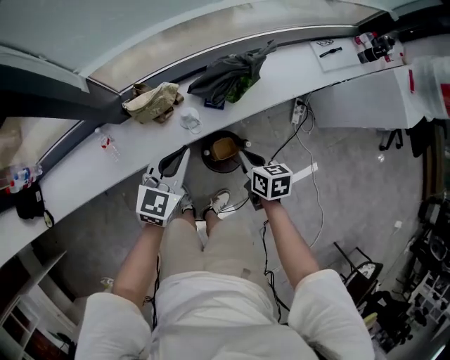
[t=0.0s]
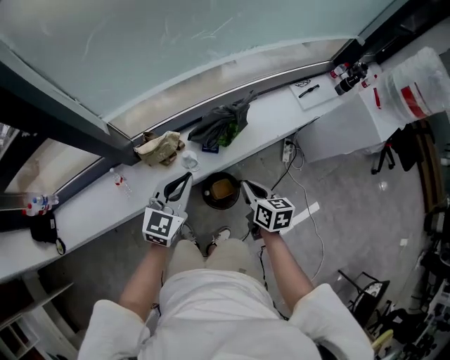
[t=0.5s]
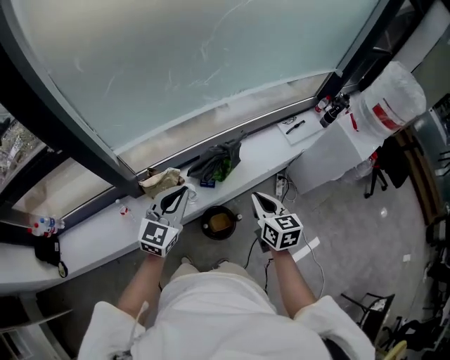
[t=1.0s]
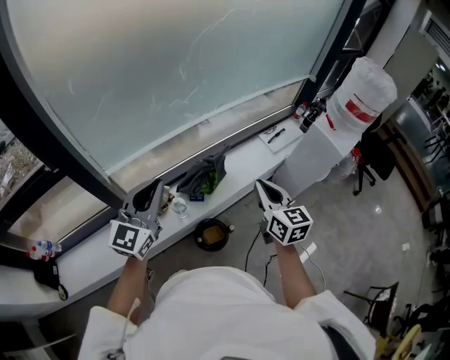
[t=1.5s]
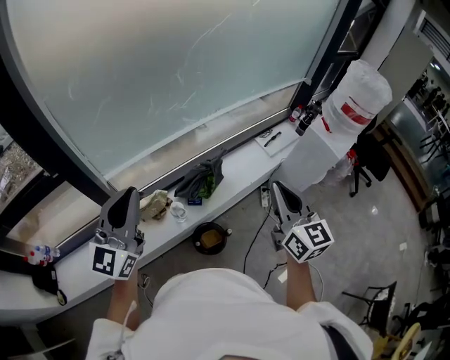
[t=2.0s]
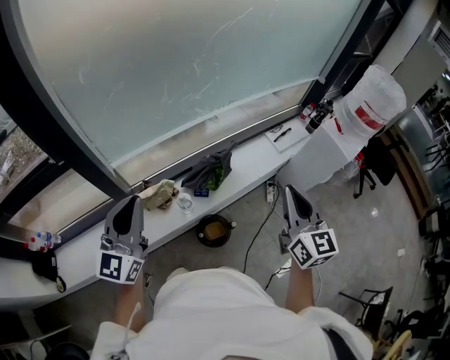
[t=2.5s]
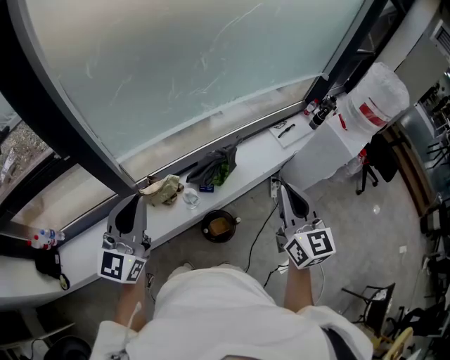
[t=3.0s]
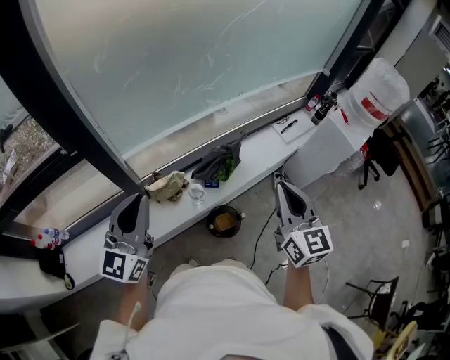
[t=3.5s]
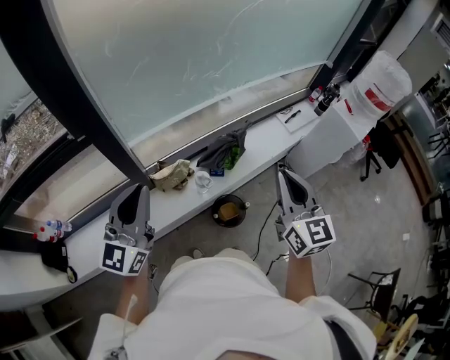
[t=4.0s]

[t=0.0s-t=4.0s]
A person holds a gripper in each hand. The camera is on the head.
t=0.0s to t=2.0s: Both grippers move upward, about 40 cm. The right gripper tilts its fingers roughly 50 degrees upward; the left gripper tips its fingers upward by roughly 40 degrees.
t=2.0s to t=4.0s: The two grippers go some 15 cm to the left and backward.

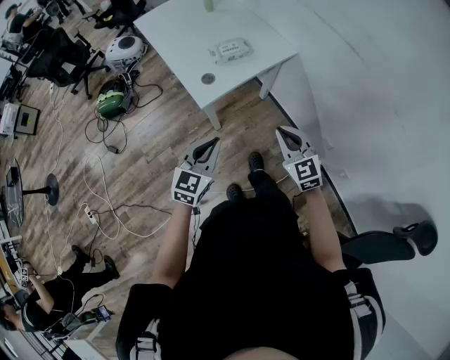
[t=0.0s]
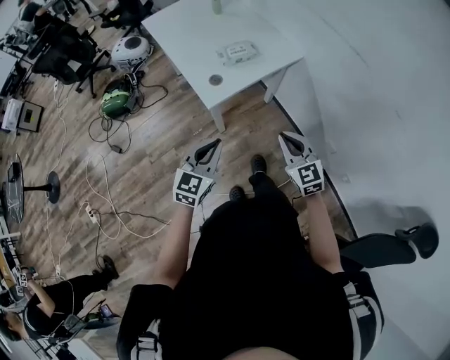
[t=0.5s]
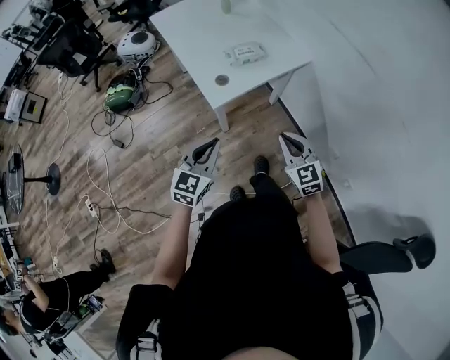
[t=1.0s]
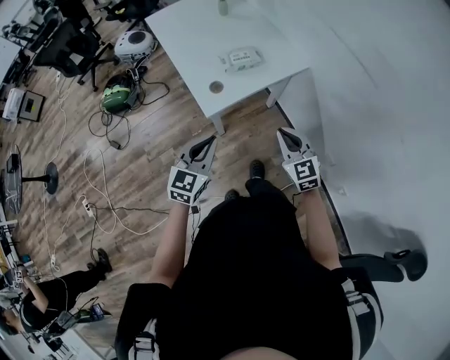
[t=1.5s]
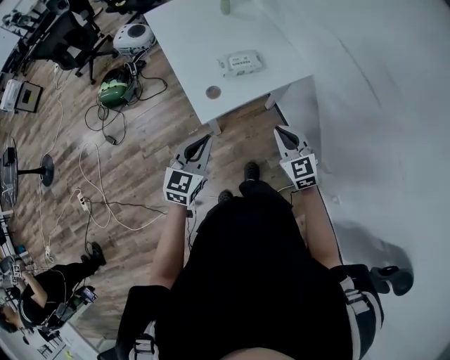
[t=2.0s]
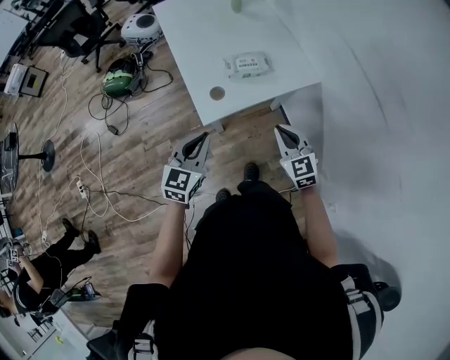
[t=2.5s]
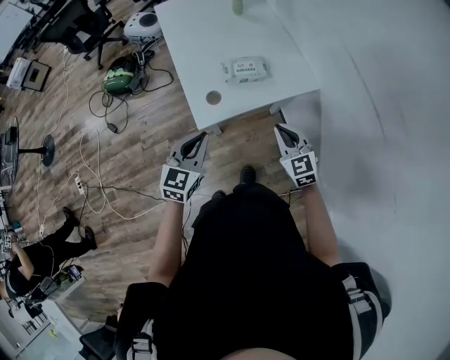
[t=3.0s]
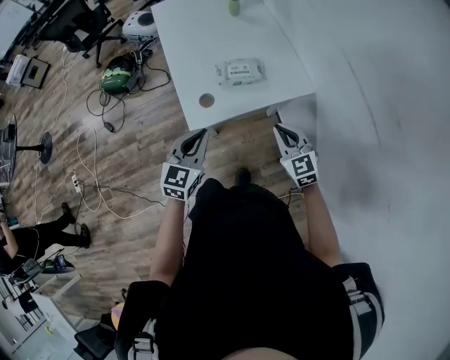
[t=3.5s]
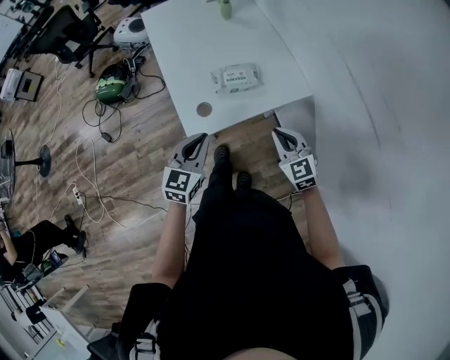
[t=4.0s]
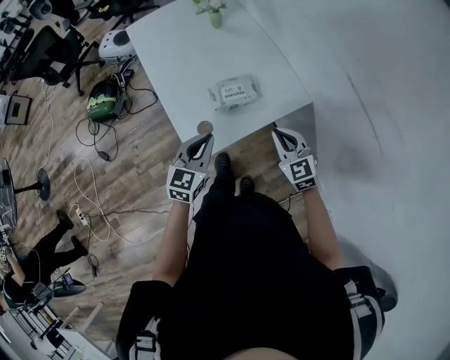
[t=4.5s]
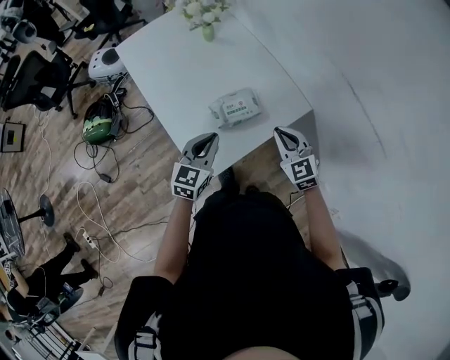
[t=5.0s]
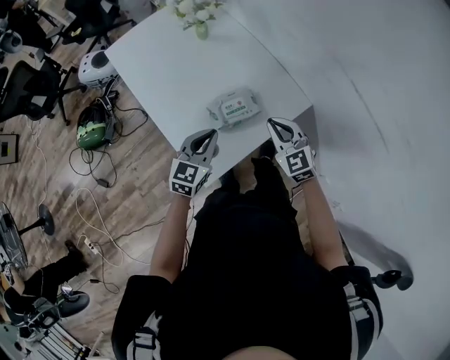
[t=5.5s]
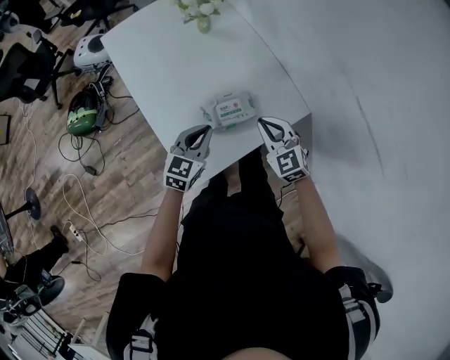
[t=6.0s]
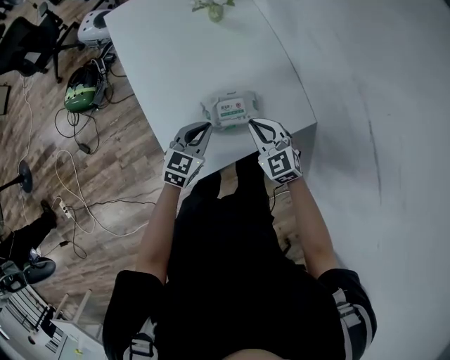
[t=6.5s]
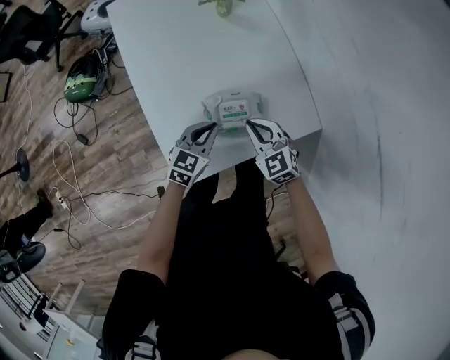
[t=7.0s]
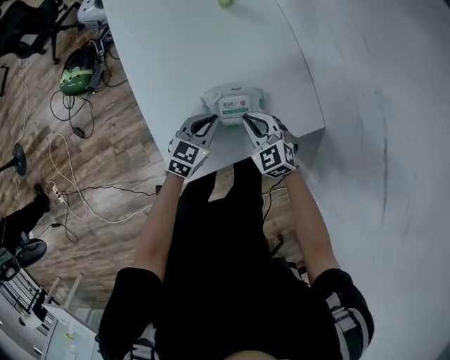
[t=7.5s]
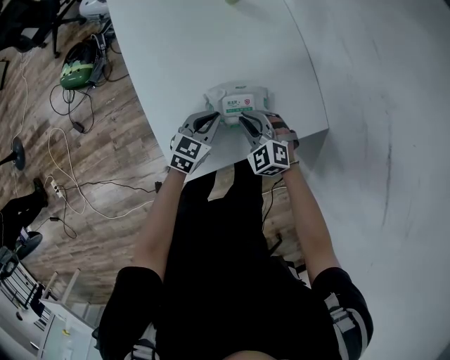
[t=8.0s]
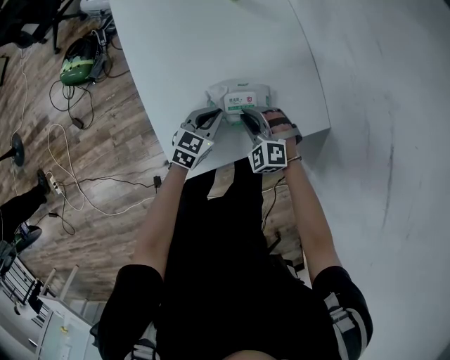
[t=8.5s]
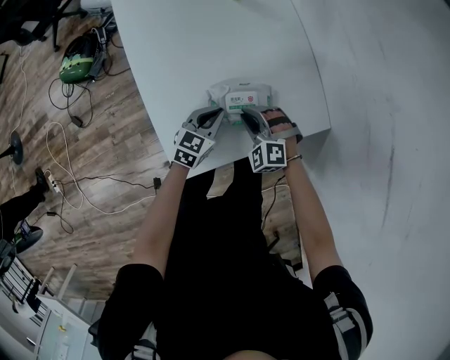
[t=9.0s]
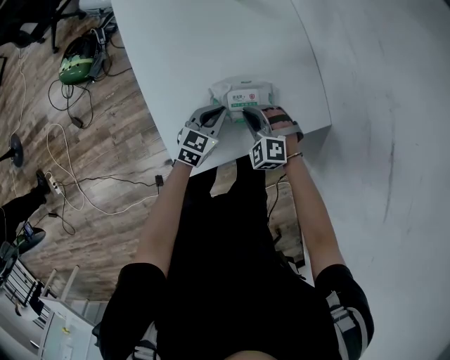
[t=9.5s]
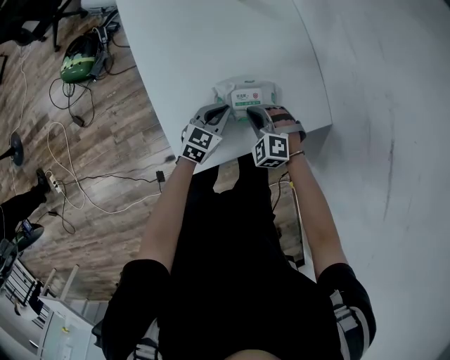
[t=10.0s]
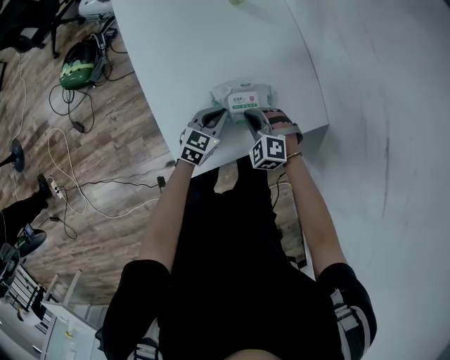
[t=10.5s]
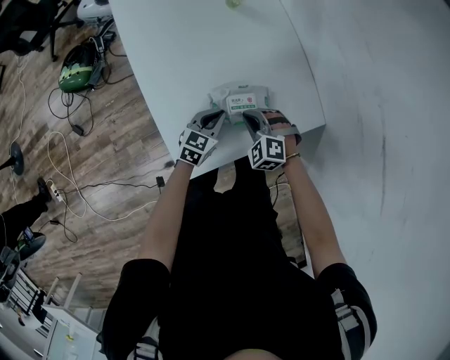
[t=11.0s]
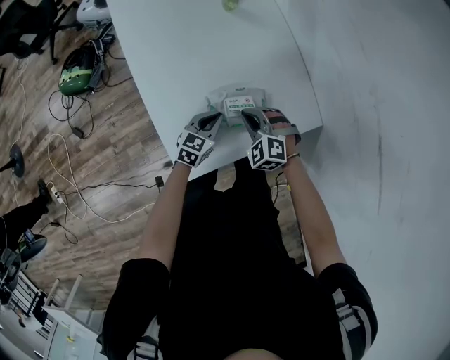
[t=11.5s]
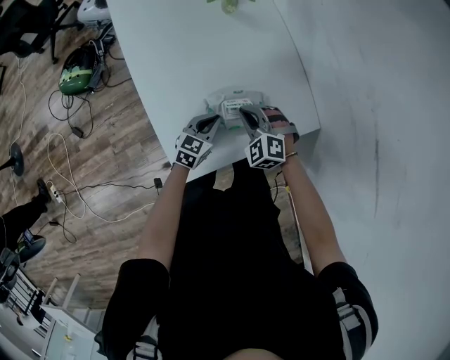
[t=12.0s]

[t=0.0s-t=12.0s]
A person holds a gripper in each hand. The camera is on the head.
t=0.0s to t=2.0s: Both grippers travel together forward, some 15 cm.
t=2.0s to t=4.0s: The grippers both shift forward and to the right by about 15 cm.
t=4.0s to t=6.0s: The right gripper is displaced forward and to the left by approximately 25 cm. The left gripper goes some 25 cm forward.
t=6.0s to t=8.0s: The two grippers go approximately 15 cm downward. The right gripper rotates roughly 30 degrees.
t=8.0s to t=10.0s: There are only small adjustments of the grippers.
t=10.0s to t=12.0s: The right gripper heads upward, covering some 5 cm.

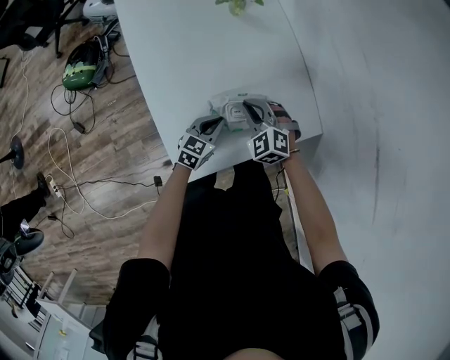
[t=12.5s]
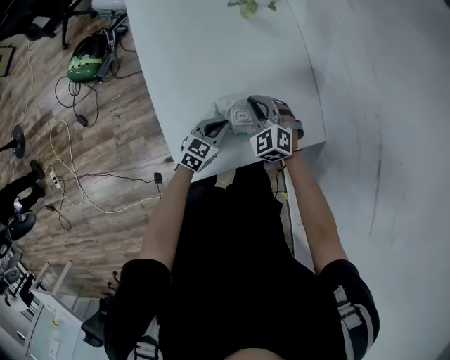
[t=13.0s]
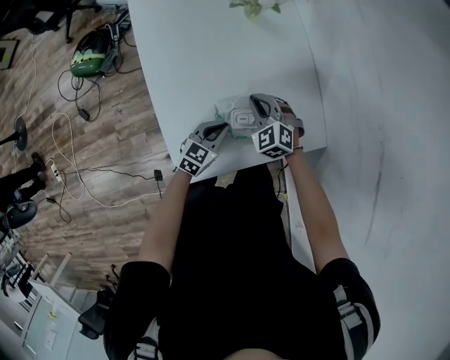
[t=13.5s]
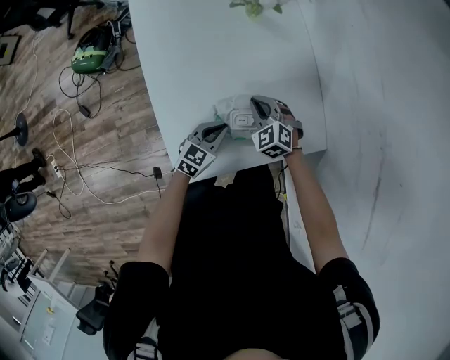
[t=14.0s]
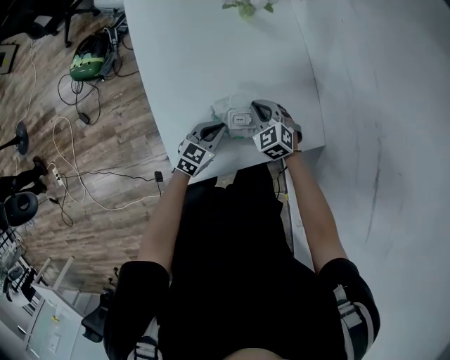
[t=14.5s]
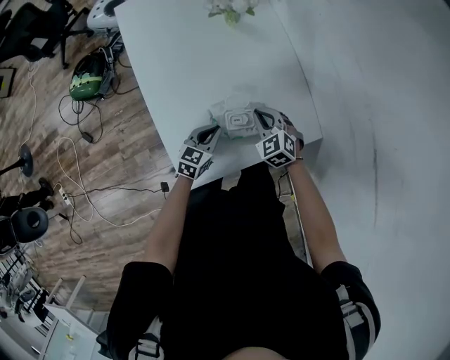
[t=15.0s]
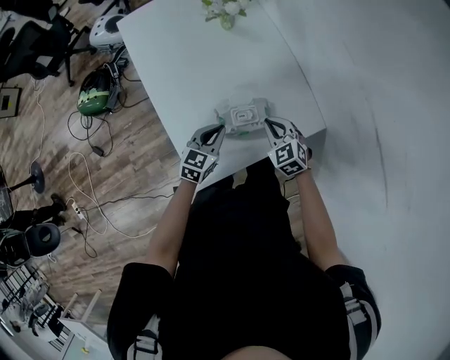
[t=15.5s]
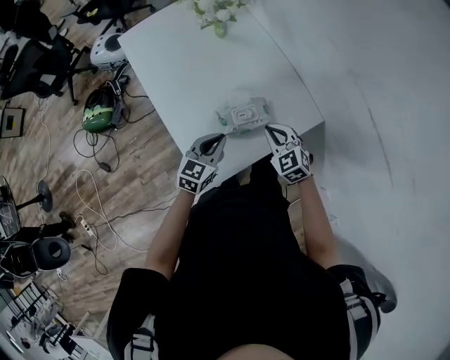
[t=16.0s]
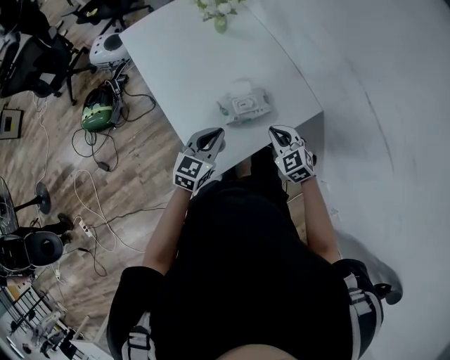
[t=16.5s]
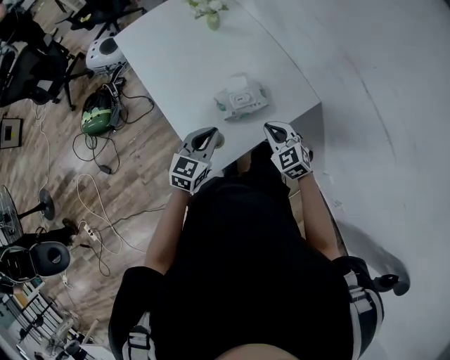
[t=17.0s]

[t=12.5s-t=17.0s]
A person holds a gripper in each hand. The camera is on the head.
t=12.5s to t=14.5s: The right gripper moves roughly 5 cm.
t=14.5s to t=17.0s: The right gripper heads backward and upward, covering approximately 25 cm, and turns by about 20 degrees; the left gripper moves upward and backward, roughly 25 cm.

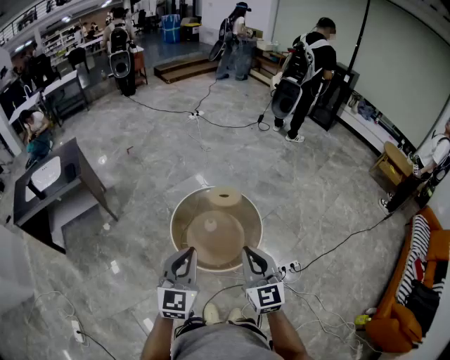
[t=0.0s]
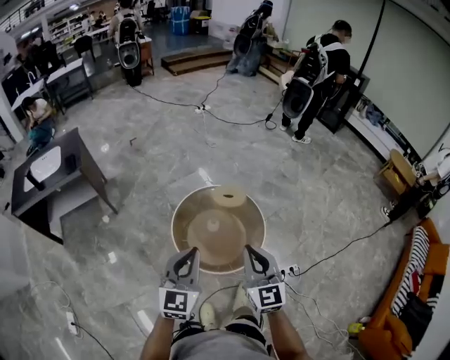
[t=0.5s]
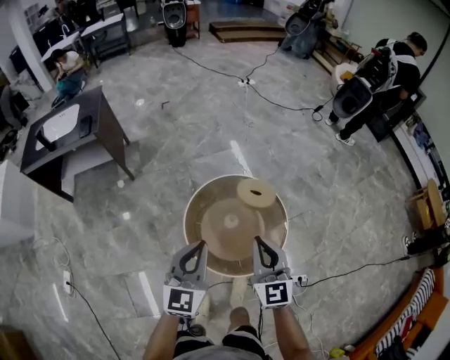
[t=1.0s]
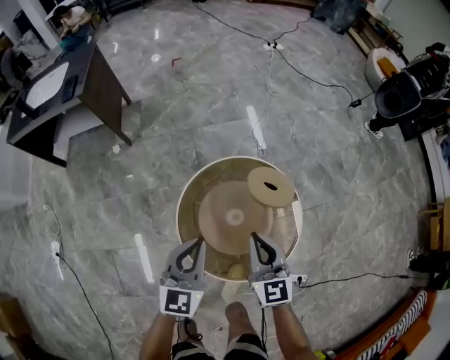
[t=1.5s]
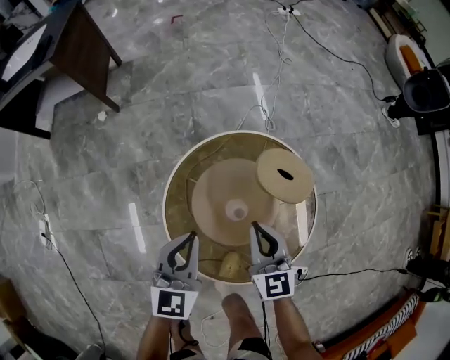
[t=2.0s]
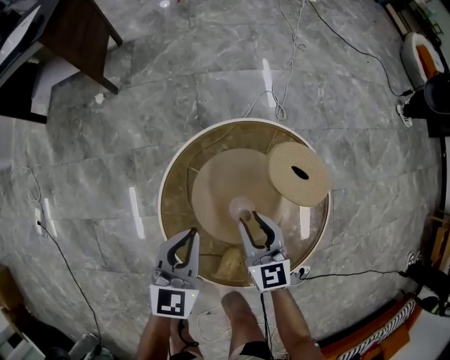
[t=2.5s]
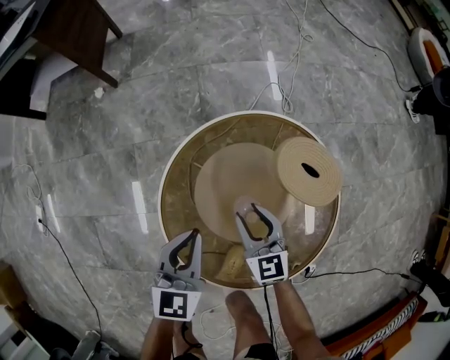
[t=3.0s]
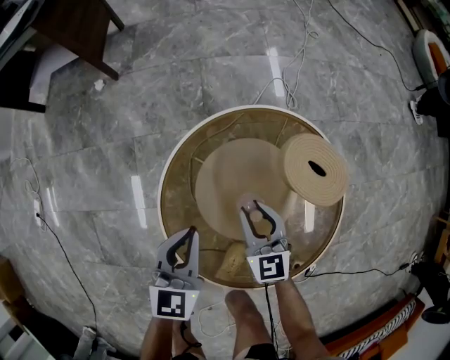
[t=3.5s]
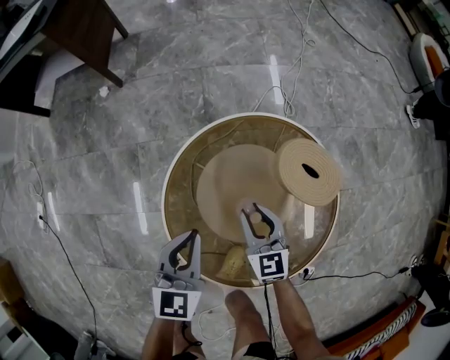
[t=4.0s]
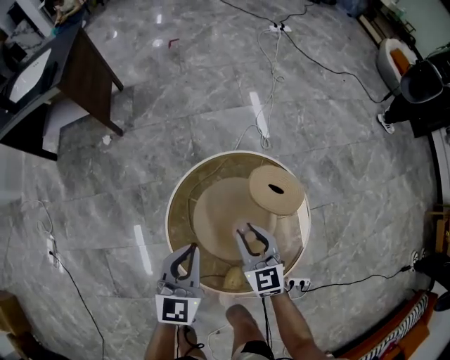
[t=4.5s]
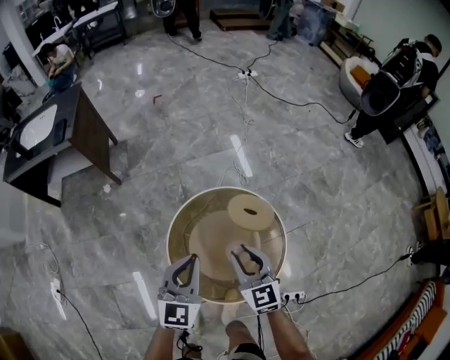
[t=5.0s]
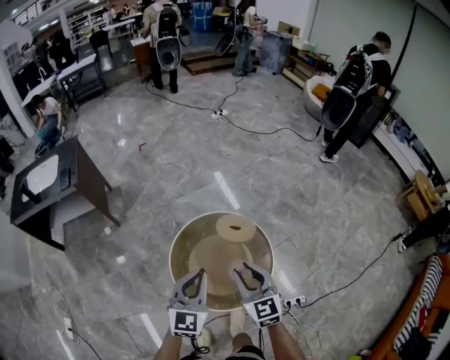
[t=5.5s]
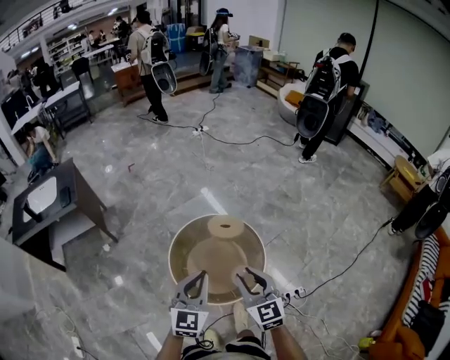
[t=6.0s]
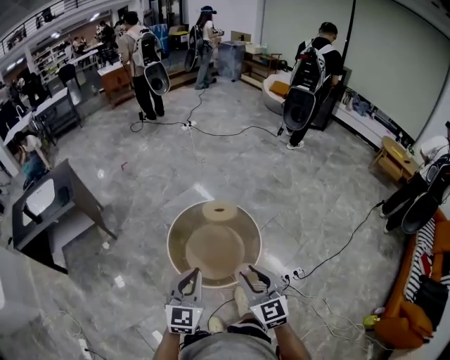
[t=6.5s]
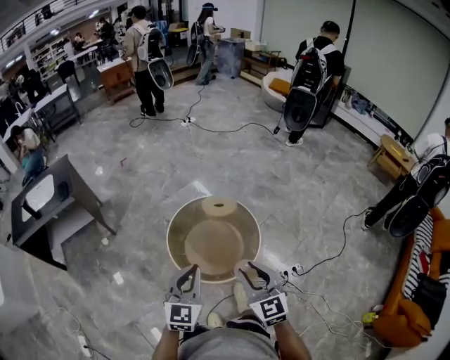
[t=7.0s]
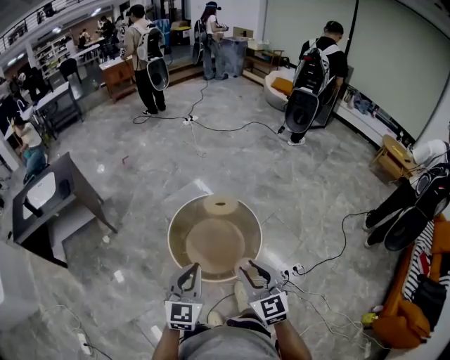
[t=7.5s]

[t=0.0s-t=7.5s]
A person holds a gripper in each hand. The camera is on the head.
t=0.0s to t=2.0s: The grippers both shift downward by about 40 cm. The left gripper swivels some 40 degrees. The right gripper turns by approximately 30 degrees.
t=2.0s to t=4.0s: The left gripper is displaced downward by approximately 10 cm; the right gripper is displaced downward by about 15 cm, and opens.
t=4.0s to t=5.5s: The two grippers go roughly 50 cm upward. The right gripper rotates roughly 20 degrees. The left gripper rotates approximately 40 degrees.
t=5.5s to t=7.5s: The grippers both shift backward by about 25 cm.
